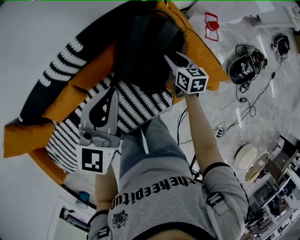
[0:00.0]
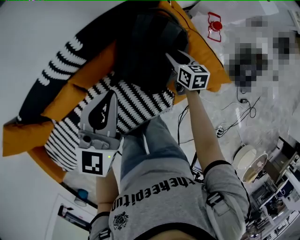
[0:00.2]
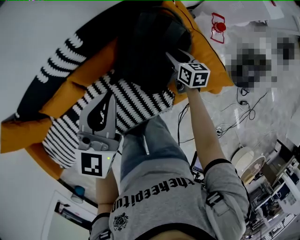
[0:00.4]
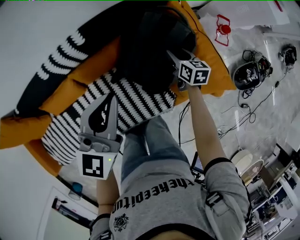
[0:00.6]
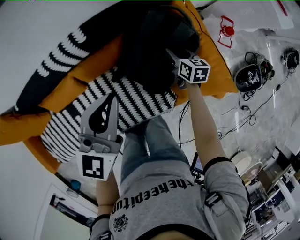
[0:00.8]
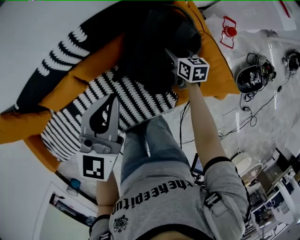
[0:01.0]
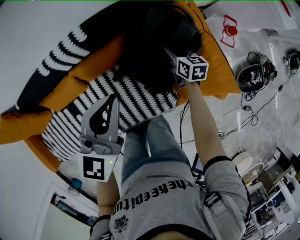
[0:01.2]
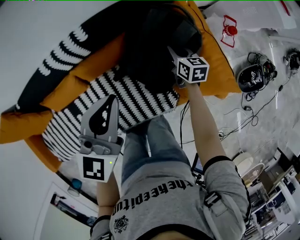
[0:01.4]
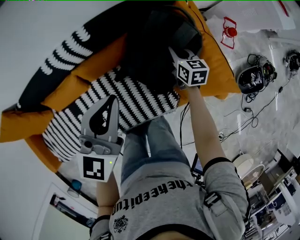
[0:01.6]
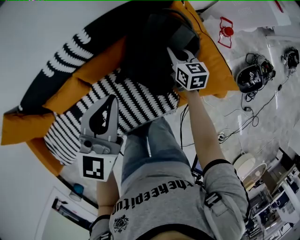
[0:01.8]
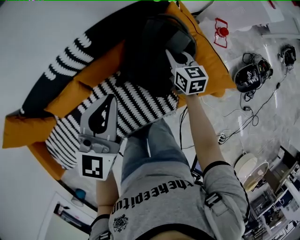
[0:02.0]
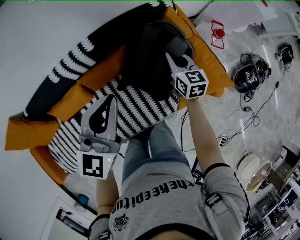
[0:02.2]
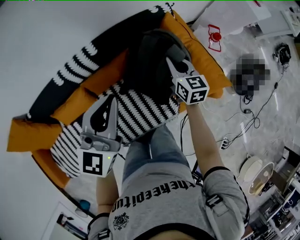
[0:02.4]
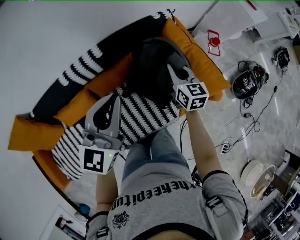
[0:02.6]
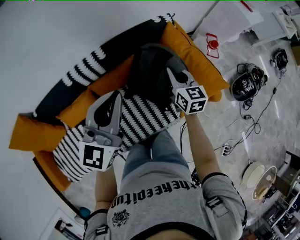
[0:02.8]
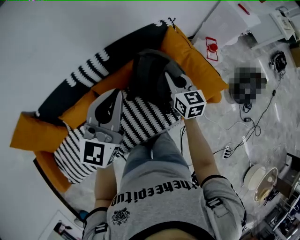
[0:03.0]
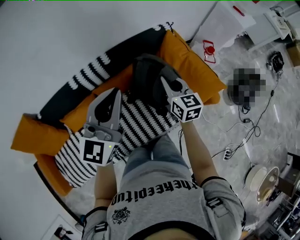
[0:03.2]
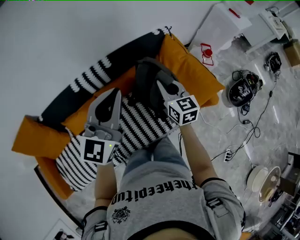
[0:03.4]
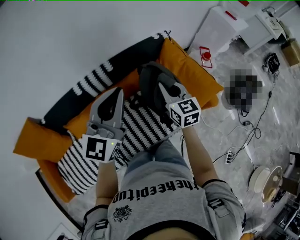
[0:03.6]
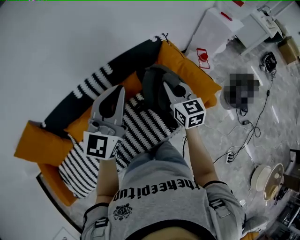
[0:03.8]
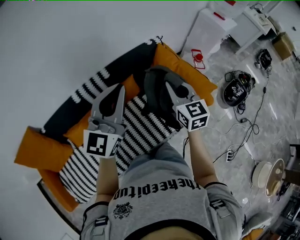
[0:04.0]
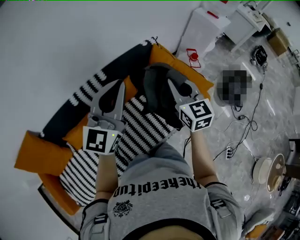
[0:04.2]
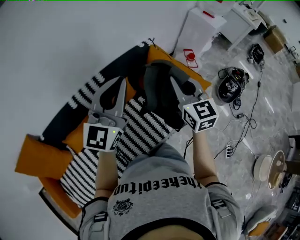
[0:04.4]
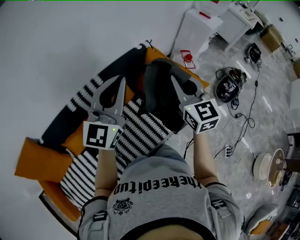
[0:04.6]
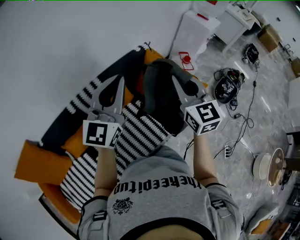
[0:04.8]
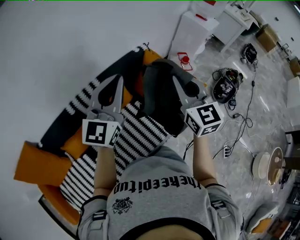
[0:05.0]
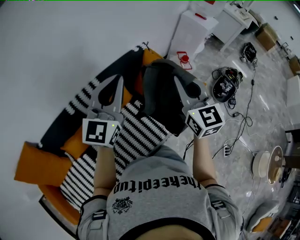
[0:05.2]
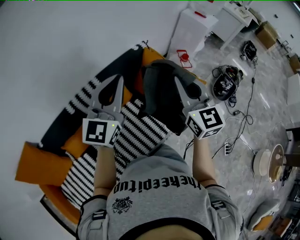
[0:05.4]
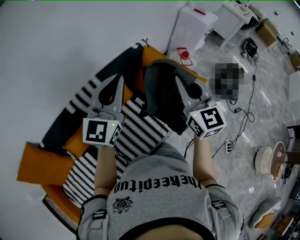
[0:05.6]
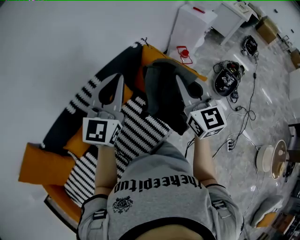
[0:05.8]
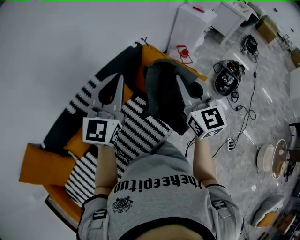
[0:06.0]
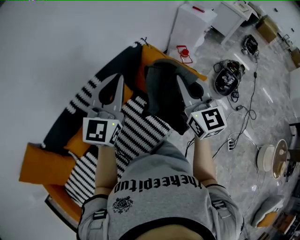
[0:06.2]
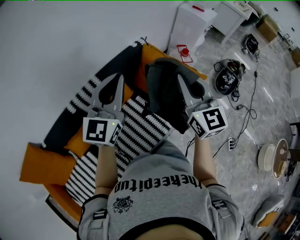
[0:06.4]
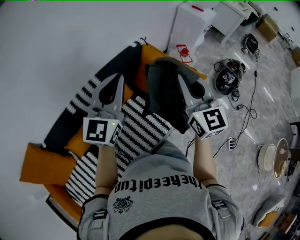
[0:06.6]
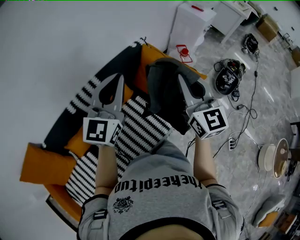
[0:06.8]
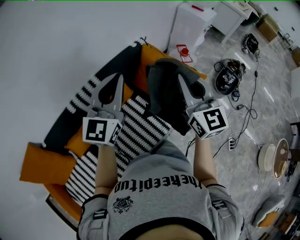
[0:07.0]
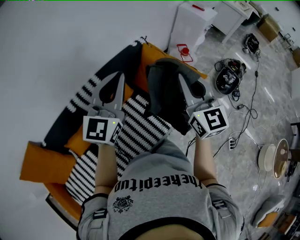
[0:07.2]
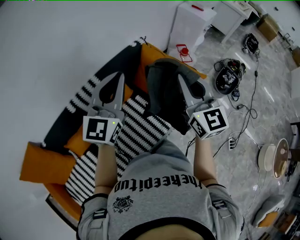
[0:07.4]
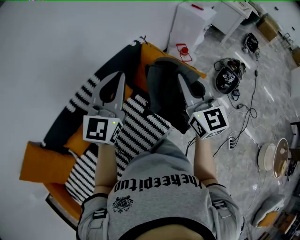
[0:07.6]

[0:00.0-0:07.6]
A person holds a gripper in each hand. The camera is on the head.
0:00.0 to 0:01.6: The right gripper ends up roughly 10 cm from where it was, and closes its fingers.
0:01.6 to 0:03.0: The right gripper is displaced upward and backward by about 25 cm. The left gripper travels upward and backward by roughly 10 cm.
0:03.0 to 0:04.6: The left gripper goes roughly 10 cm upward. The right gripper goes approximately 20 cm upward and backward, and rotates about 20 degrees.
0:04.6 to 0:06.0: The grippers make only small movements.
0:06.0 to 0:07.6: The grippers make only small movements.

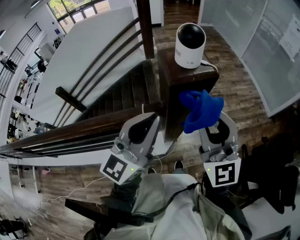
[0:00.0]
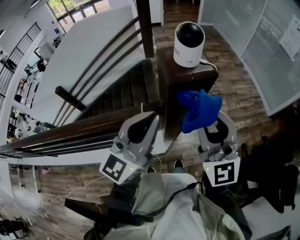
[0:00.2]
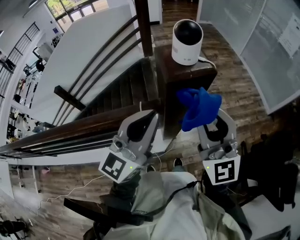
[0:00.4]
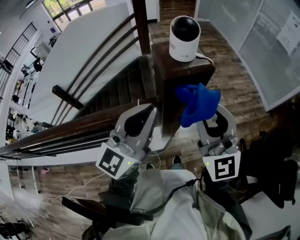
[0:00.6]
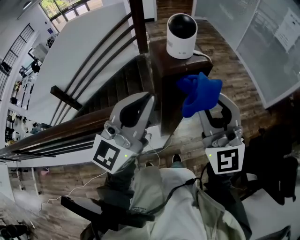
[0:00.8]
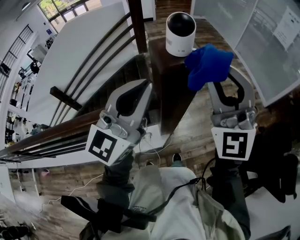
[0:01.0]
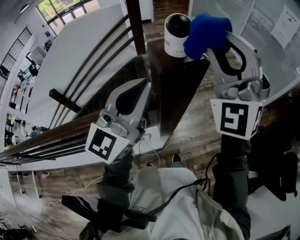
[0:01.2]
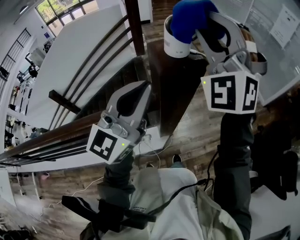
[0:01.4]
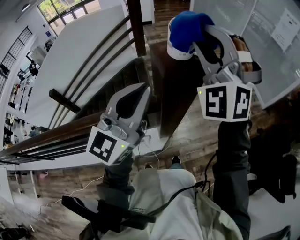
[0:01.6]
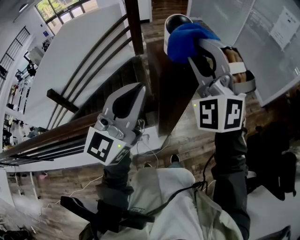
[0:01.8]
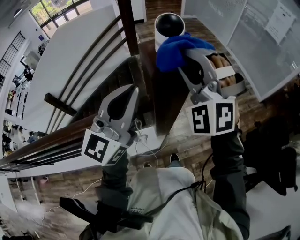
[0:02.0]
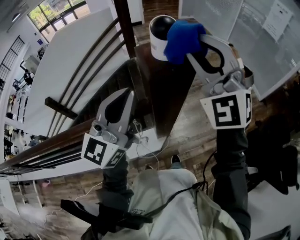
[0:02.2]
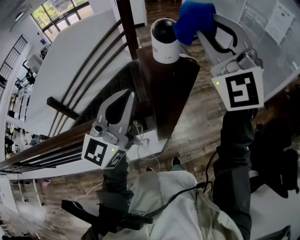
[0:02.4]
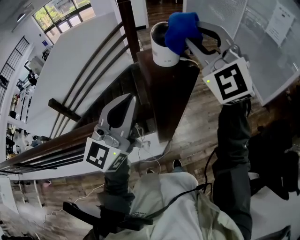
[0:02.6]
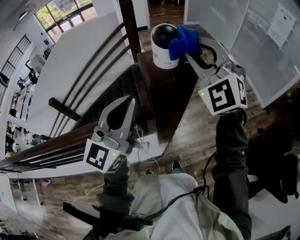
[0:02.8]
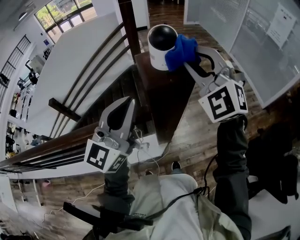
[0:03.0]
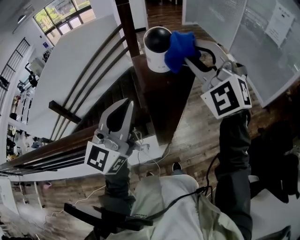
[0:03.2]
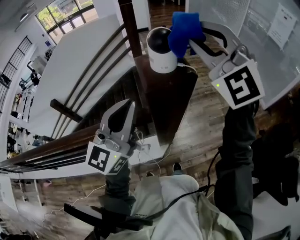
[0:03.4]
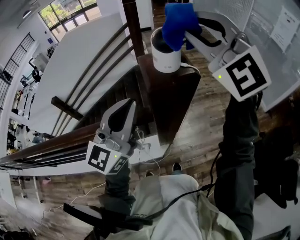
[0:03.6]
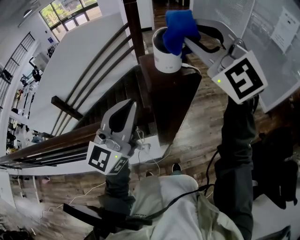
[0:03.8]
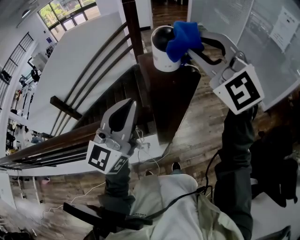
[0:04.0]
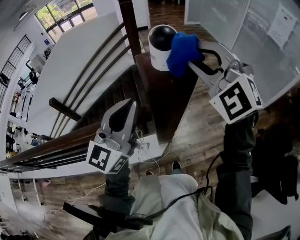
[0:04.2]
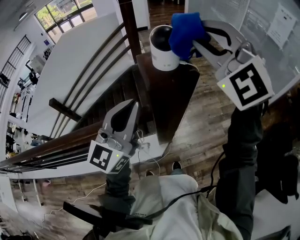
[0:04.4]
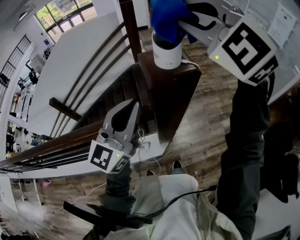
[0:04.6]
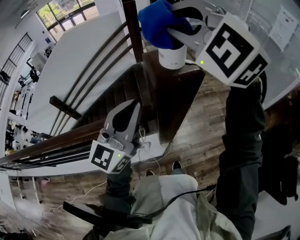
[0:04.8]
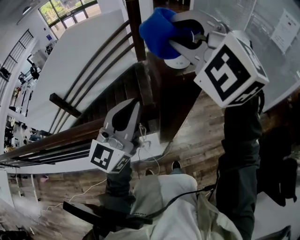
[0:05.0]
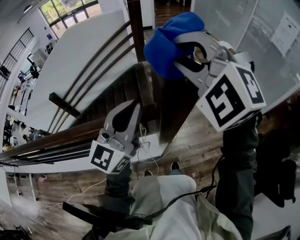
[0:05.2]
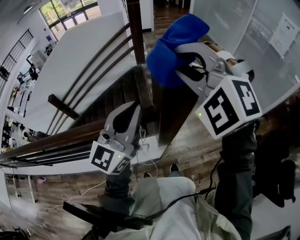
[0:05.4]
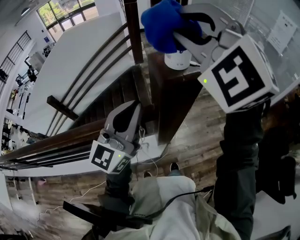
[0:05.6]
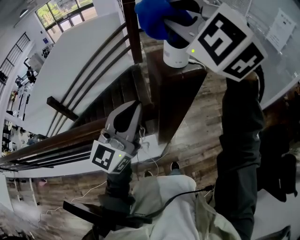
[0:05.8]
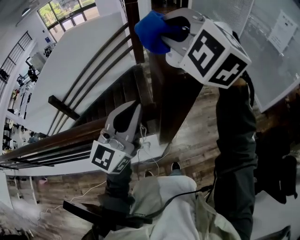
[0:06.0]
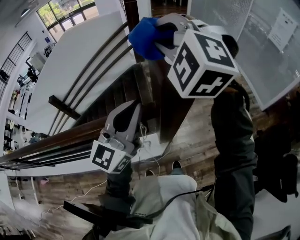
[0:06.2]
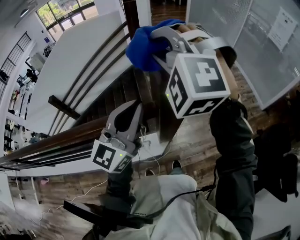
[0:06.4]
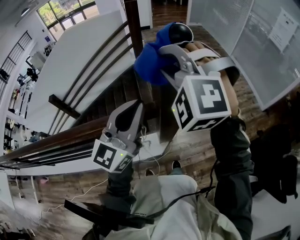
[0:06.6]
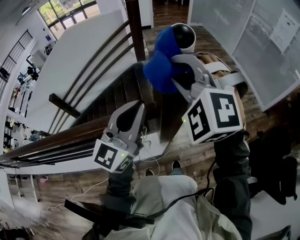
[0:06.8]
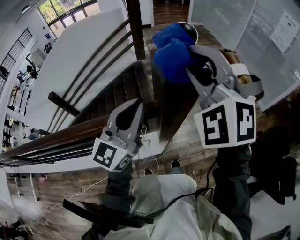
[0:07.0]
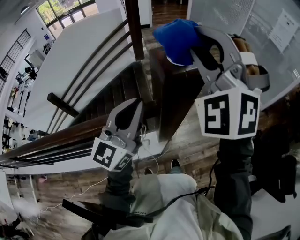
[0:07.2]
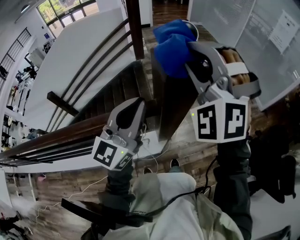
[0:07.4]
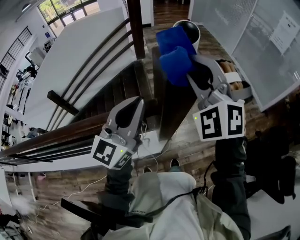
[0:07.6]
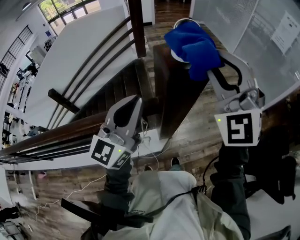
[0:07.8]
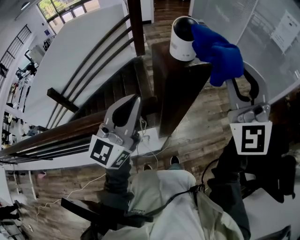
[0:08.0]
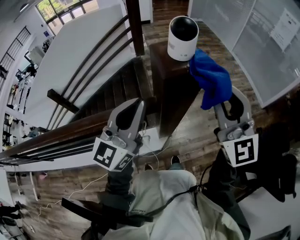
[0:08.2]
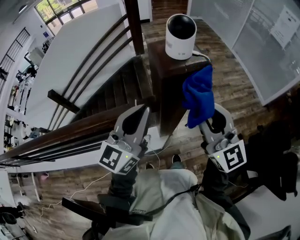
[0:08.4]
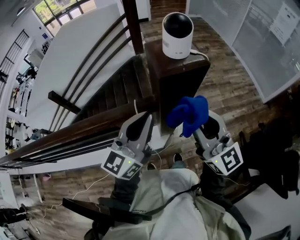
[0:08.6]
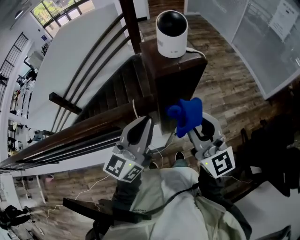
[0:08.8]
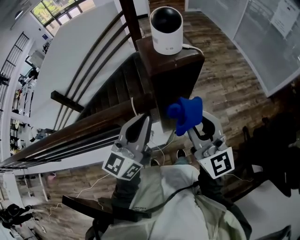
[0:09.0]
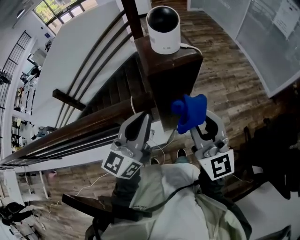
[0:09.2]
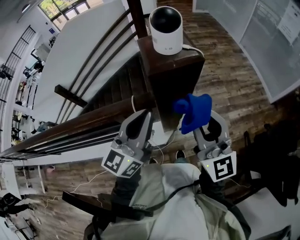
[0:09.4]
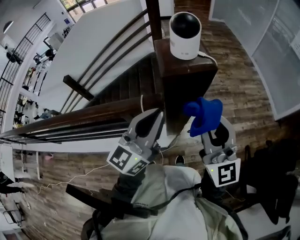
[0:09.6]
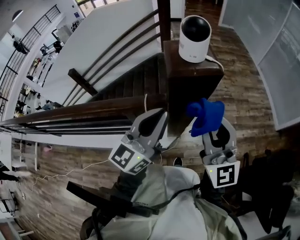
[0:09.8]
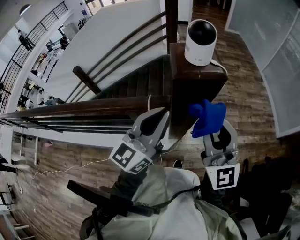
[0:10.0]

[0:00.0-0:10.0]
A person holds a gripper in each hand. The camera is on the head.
0:00.0 to 0:01.4: The left gripper shifts some 5 cm upward; the right gripper shifts about 20 cm upward and forward, and rolls counterclockwise, seen from behind, by approximately 50 degrees.
0:01.4 to 0:02.8: The right gripper swings up and down, some 10 cm each way, with 2 reversals, and changes its angle by approximately 20 degrees.
0:02.8 to 0:04.2: The right gripper travels upward and back again, about 10 cm each way.
0:04.2 to 0:05.8: The right gripper goes up and down, about 10 cm each way, reversing 2 times.
0:05.8 to 0:07.2: The right gripper goes downward and returns, roughly 10 cm each way, and turns by approximately 30 degrees.
0:07.2 to 0:08.6: The right gripper moves up and down over about 20 cm, changing direction 2 times, and twists about 70 degrees clockwise, seen from behind; the left gripper travels downward by about 5 cm.
0:08.6 to 0:10.0: The grippers stay close to where they were, moving slightly.

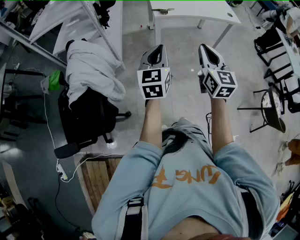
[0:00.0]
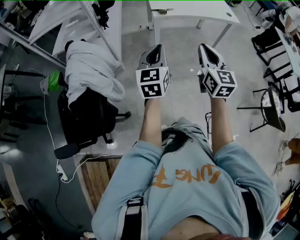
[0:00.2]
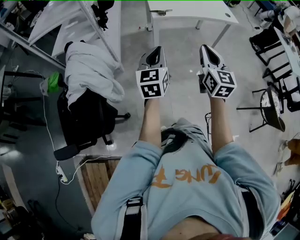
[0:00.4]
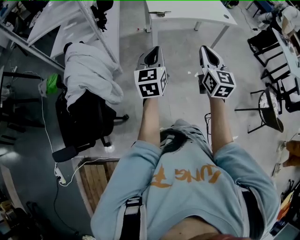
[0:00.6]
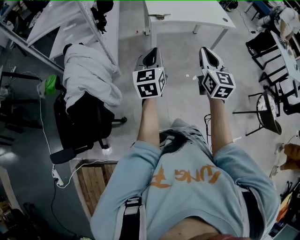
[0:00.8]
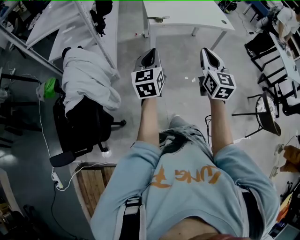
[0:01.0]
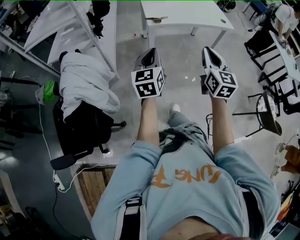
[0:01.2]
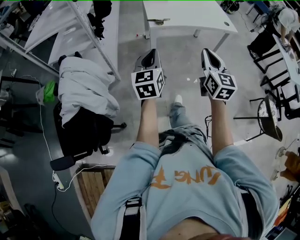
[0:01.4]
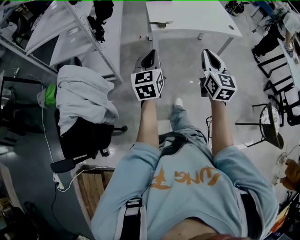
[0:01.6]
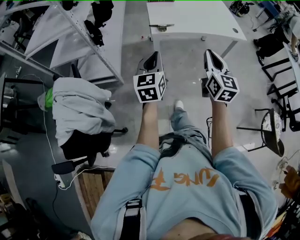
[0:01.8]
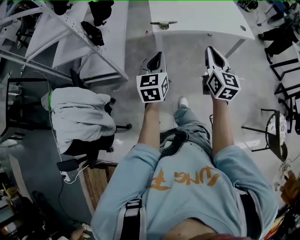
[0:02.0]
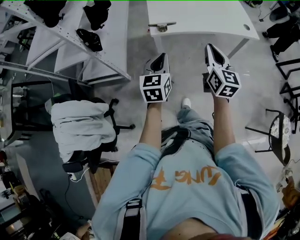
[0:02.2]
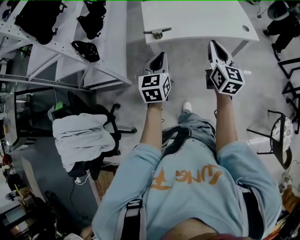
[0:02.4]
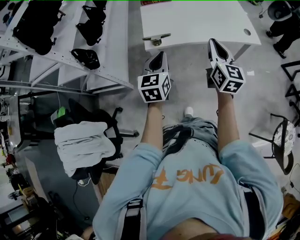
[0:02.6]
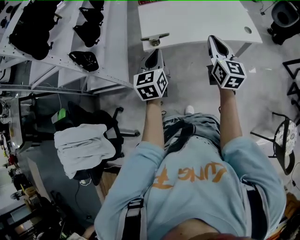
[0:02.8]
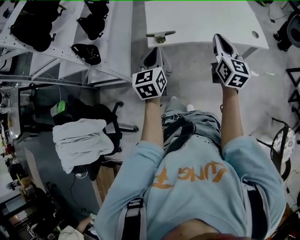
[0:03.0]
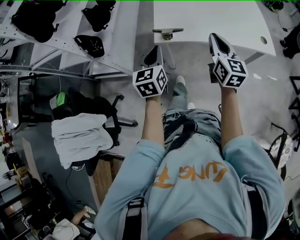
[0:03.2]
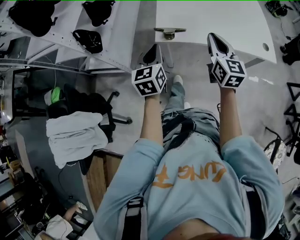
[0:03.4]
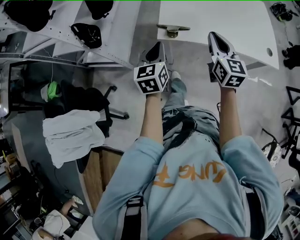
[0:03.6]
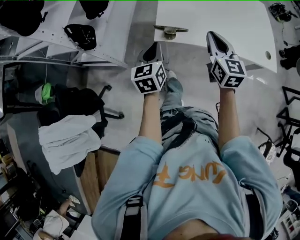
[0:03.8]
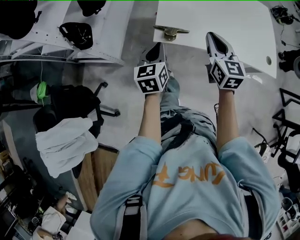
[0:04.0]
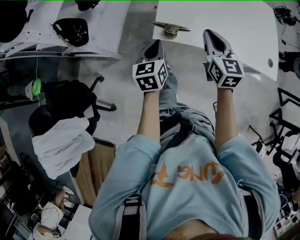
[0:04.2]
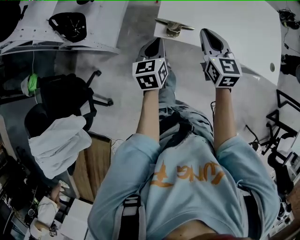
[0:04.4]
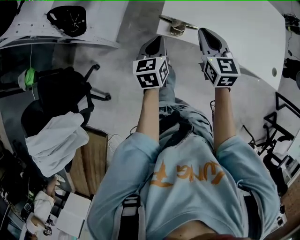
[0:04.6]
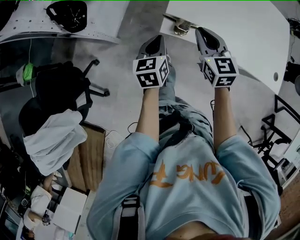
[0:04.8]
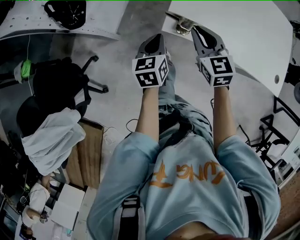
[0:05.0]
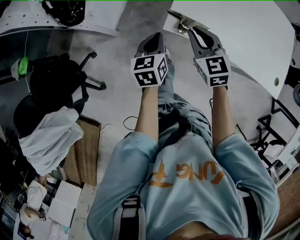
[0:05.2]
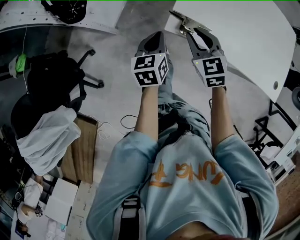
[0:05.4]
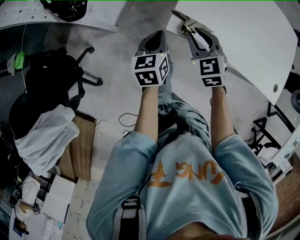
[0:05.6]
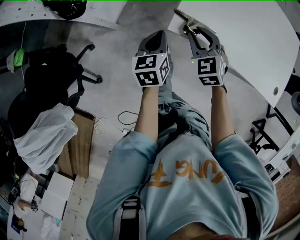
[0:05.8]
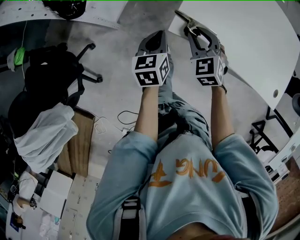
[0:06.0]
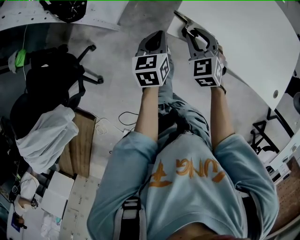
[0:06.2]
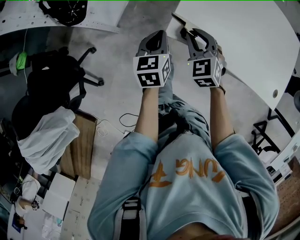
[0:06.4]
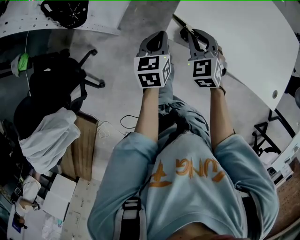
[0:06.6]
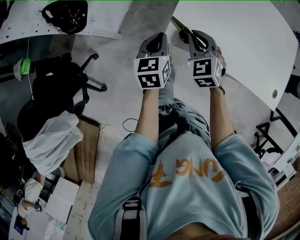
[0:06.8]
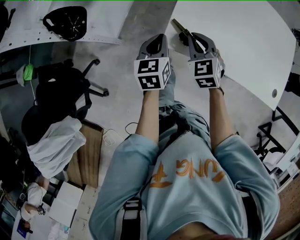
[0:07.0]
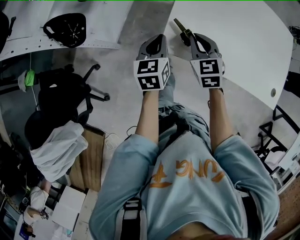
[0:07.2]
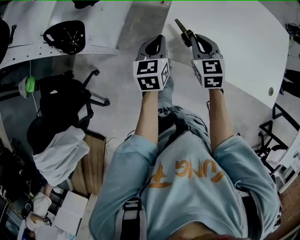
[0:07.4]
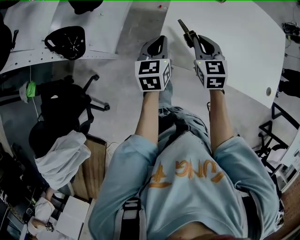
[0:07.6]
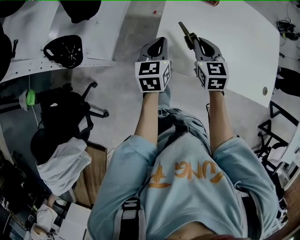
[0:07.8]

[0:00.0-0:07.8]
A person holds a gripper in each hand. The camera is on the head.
0:00.0 to 0:01.6: The two grippers go about 10 cm forward.
0:01.6 to 0:03.2: The grippers both shift forward by roughly 30 cm.
0:03.2 to 0:04.6: The left gripper goes approximately 15 cm downward and forward; the right gripper goes approximately 20 cm forward, to the left and downward, and turns by about 30 degrees.
0:04.6 to 0:06.2: The left gripper moves some 5 cm. The right gripper is displaced downward and to the left by approximately 10 cm, and turns by about 40 degrees.
0:06.2 to 0:07.8: The right gripper goes some 15 cm to the right, upward and forward, and turns by some 30 degrees, while the left gripper shifts roughly 15 cm forward, upward and to the right.
